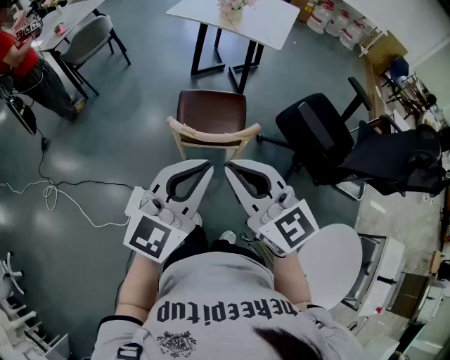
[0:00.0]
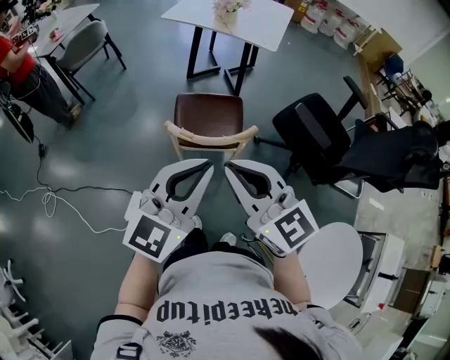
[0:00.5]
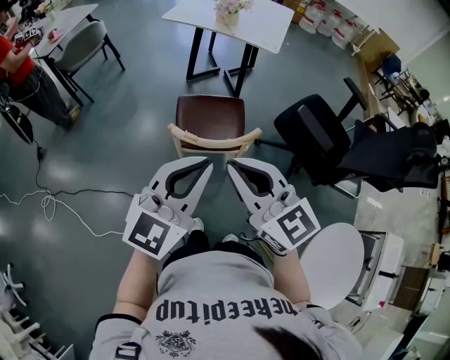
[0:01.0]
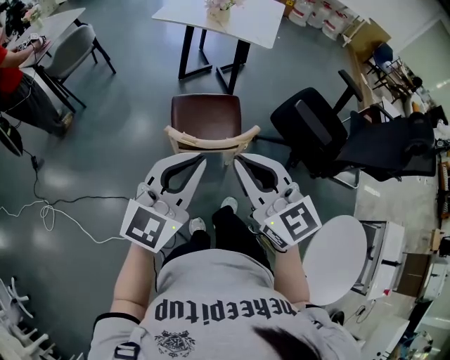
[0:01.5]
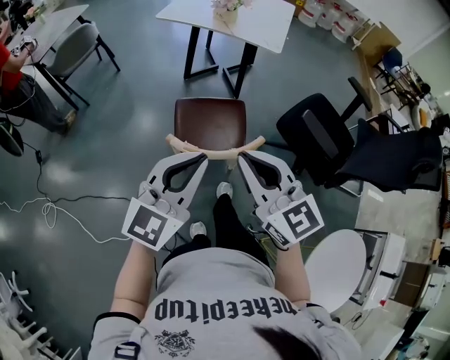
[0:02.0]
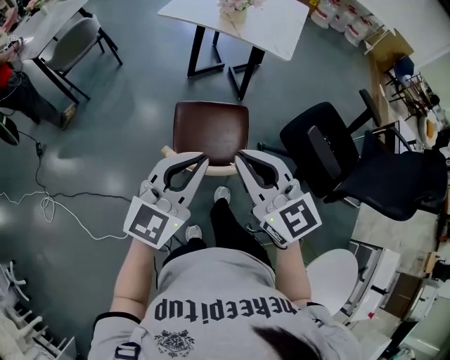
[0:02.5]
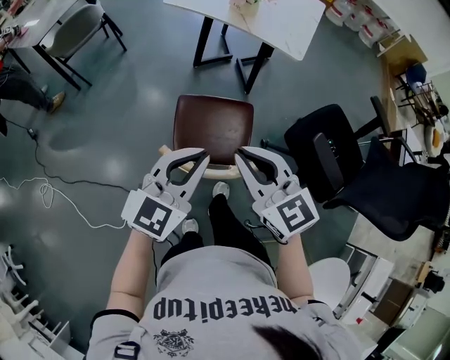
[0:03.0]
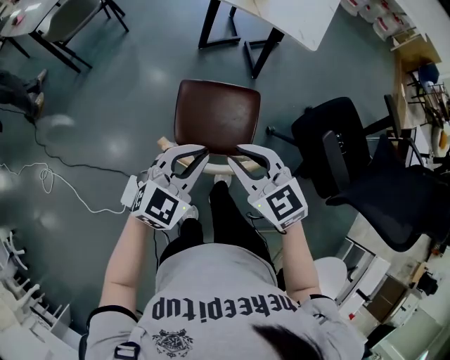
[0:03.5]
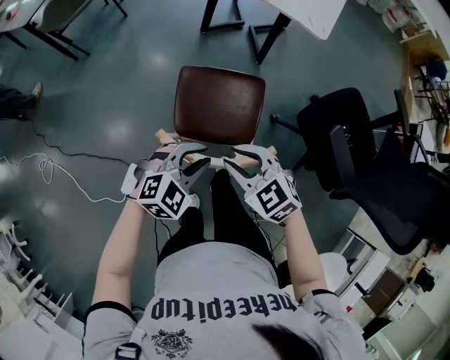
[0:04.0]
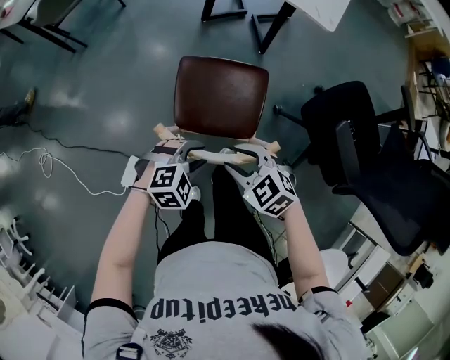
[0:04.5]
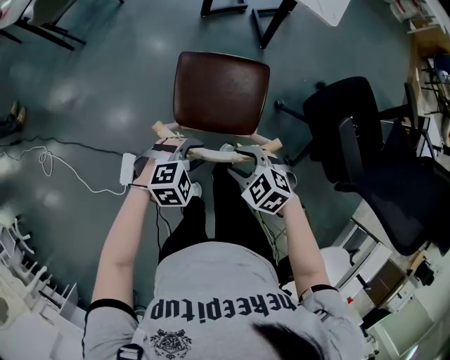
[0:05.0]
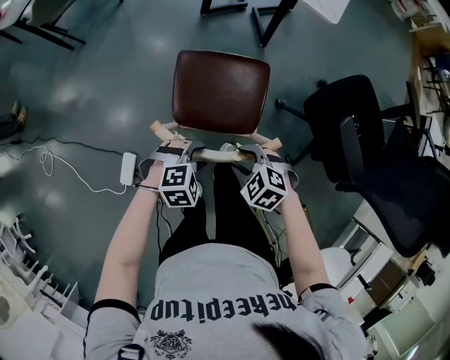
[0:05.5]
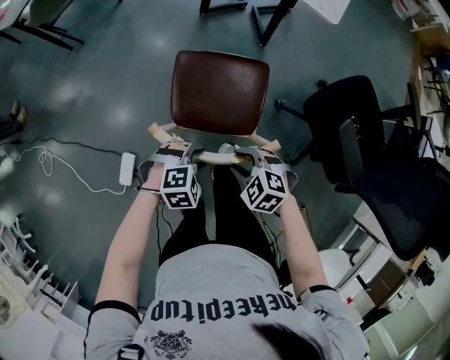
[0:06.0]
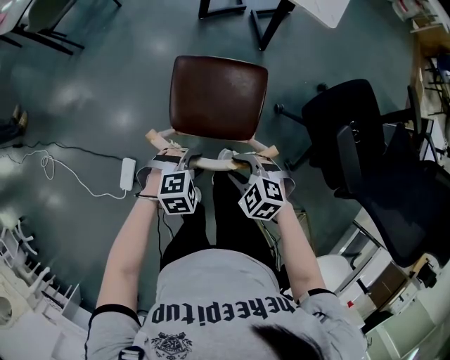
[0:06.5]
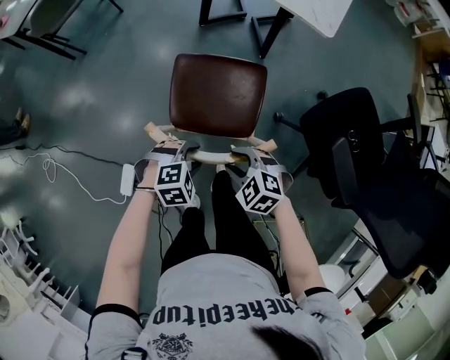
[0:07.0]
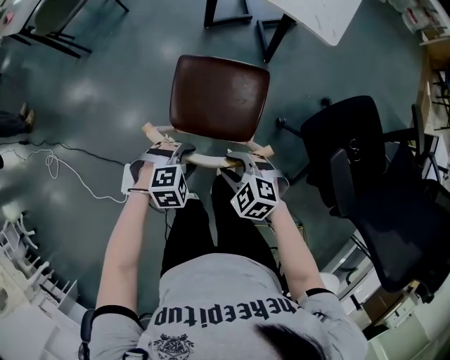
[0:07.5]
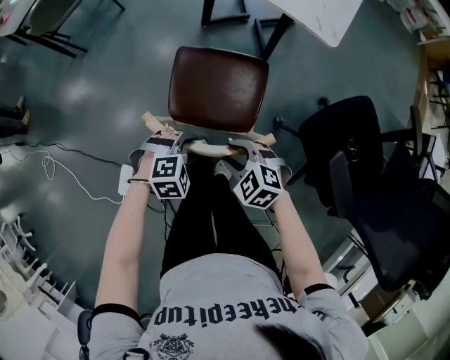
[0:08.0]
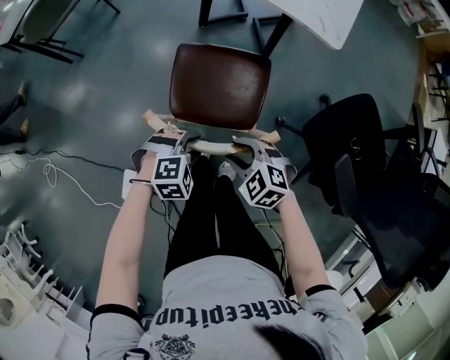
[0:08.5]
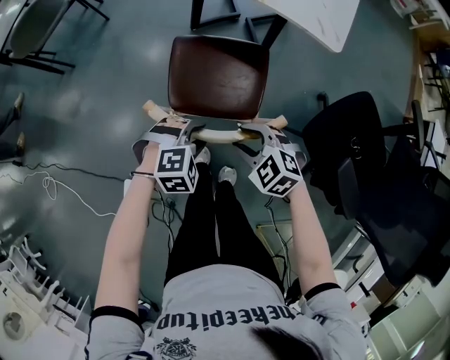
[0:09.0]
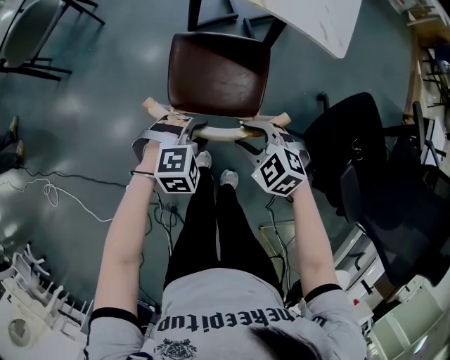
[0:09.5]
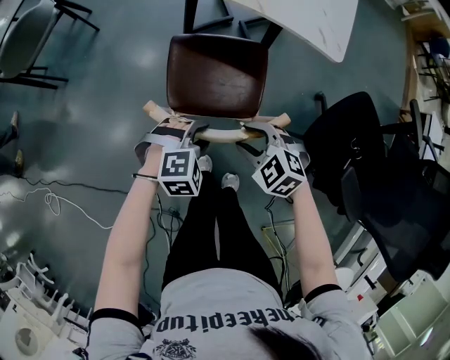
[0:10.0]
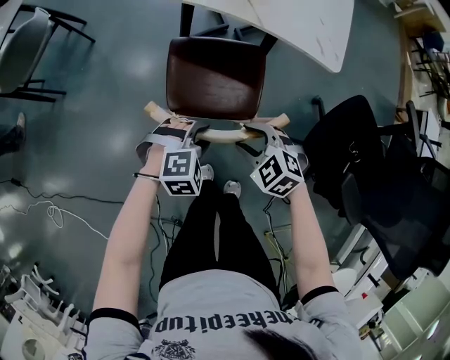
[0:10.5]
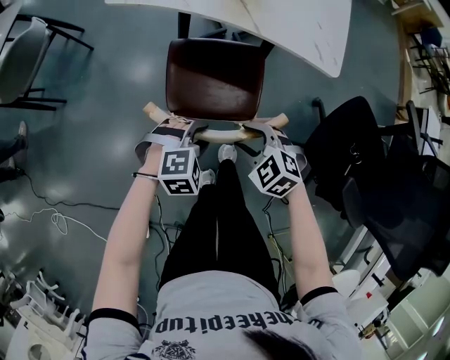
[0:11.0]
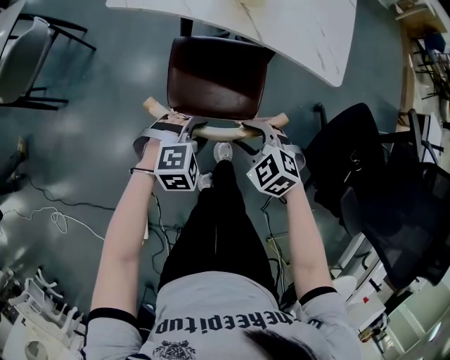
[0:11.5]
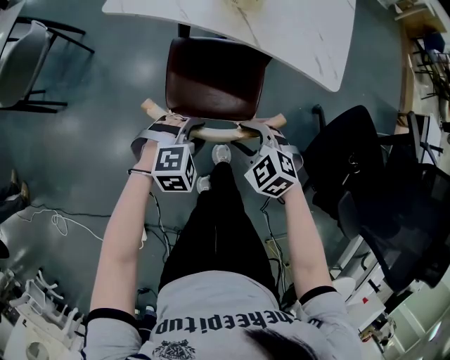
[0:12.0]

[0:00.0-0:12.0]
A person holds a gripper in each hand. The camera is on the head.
0:00.0 to 0:02.0: The grippers both shift forward by approximately 10 cm.
0:02.0 to 0:04.0: The grippers both shift downward and forward by roughly 25 cm. The right gripper angles its fingers downward, by roughly 30 degrees, and opens, while the left gripper angles its fingers downward, by some 40 degrees, and opens.
0:04.0 to 0:06.0: The grippers both shift downward by some 15 cm. The left gripper swivels roughly 30 degrees. The right gripper swivels about 20 degrees.
0:06.0 to 0:08.0: The left gripper changes place by roughly 10 cm. The right gripper moves roughly 10 cm.
0:08.0 to 0:10.0: The grippers both shift forward by some 15 cm.
0:10.0 to 0:12.0: The grippers both shift forward by about 10 cm.

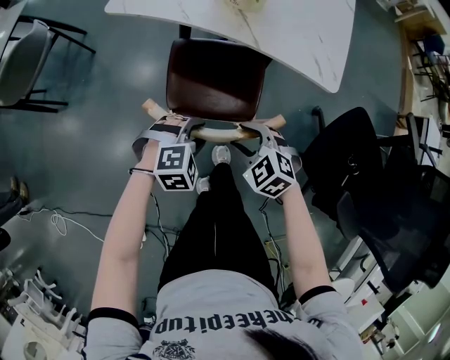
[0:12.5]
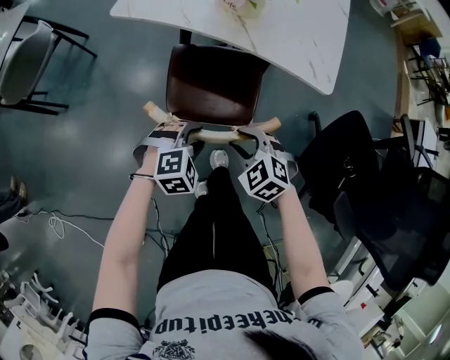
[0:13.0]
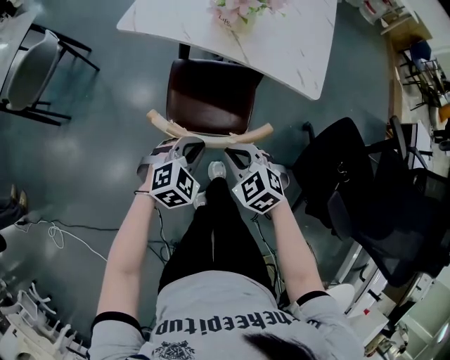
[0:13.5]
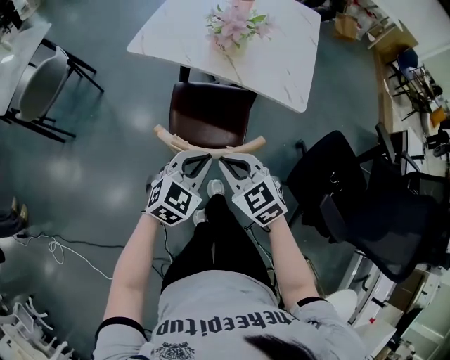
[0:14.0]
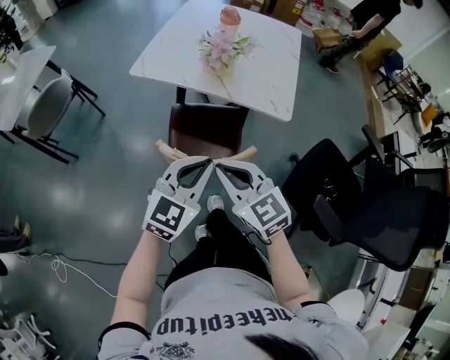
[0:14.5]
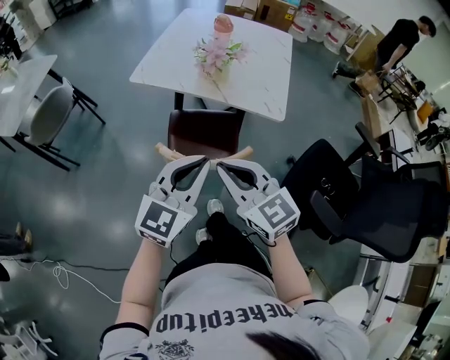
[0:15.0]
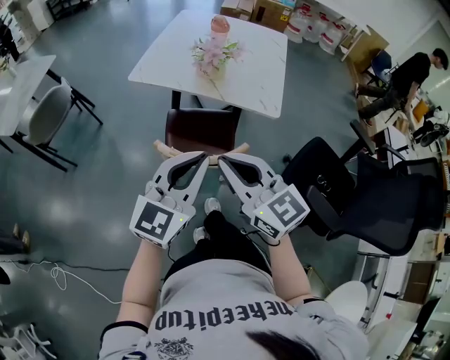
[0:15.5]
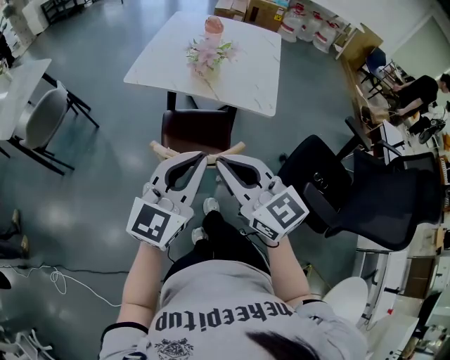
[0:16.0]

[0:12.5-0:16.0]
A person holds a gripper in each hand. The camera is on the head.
0:12.5 to 0:14.5: Both grippers travel together upward, approximately 25 cm. The left gripper points its fingers roughly 50 degrees further upward, and closes; the right gripper tilts its fingers some 30 degrees upward, and closes up.
0:14.5 to 0:16.0: Both grippers travel together upward and backward, about 10 cm.

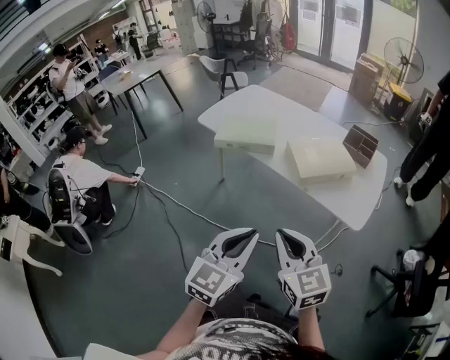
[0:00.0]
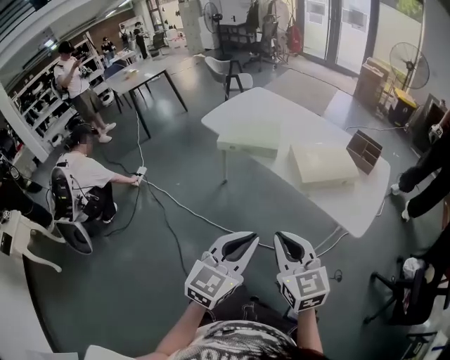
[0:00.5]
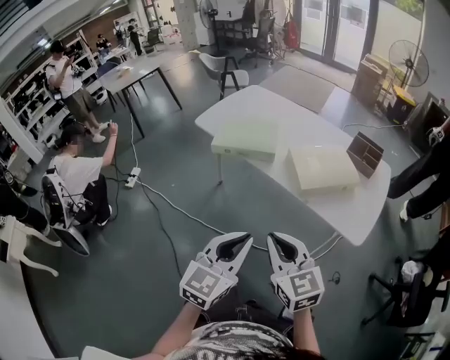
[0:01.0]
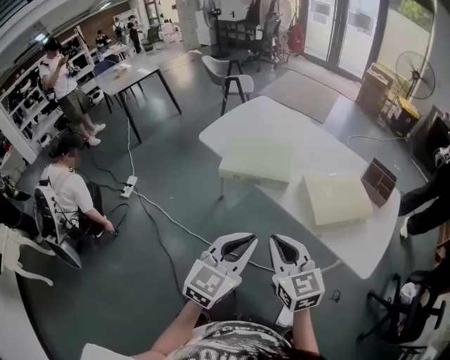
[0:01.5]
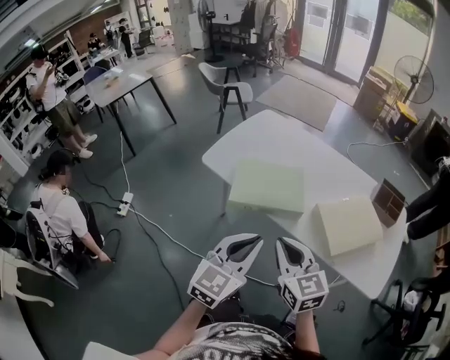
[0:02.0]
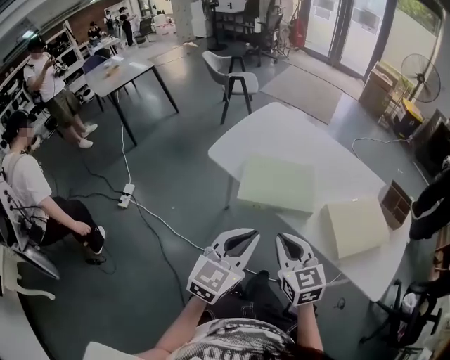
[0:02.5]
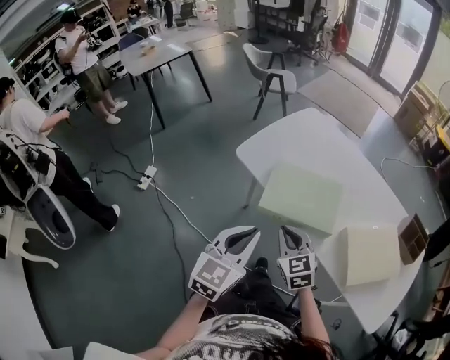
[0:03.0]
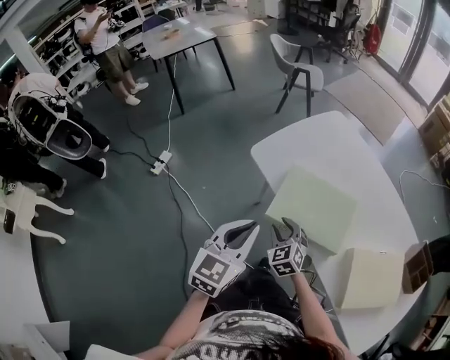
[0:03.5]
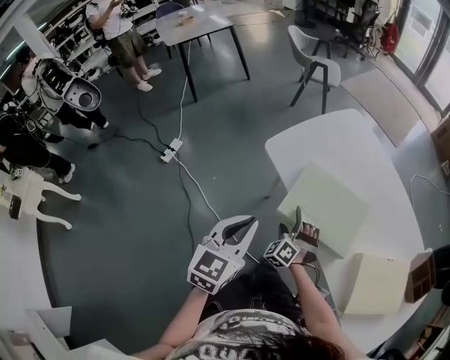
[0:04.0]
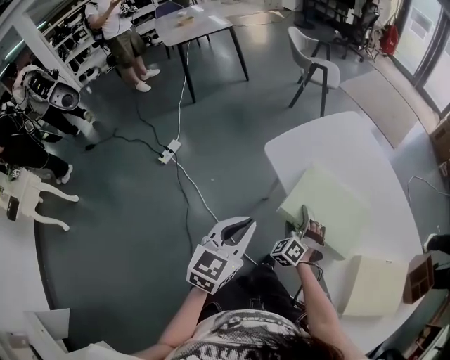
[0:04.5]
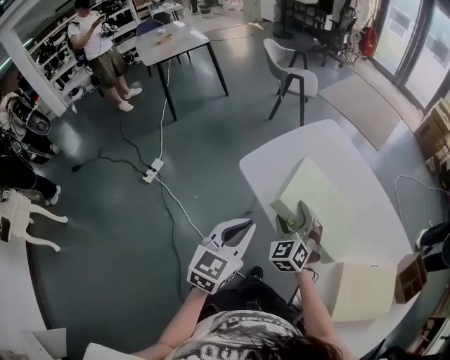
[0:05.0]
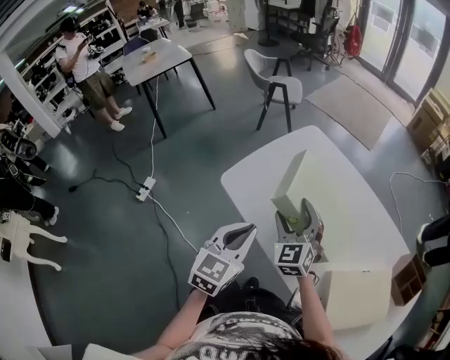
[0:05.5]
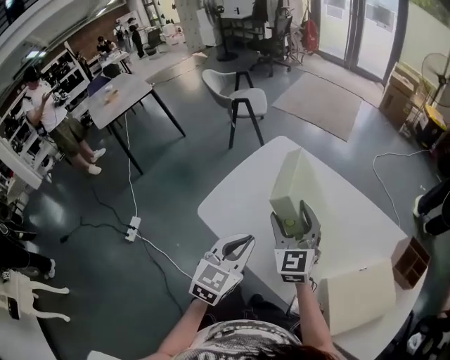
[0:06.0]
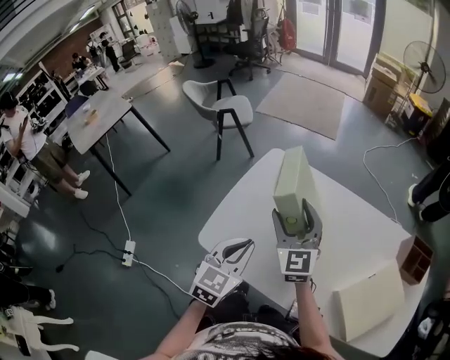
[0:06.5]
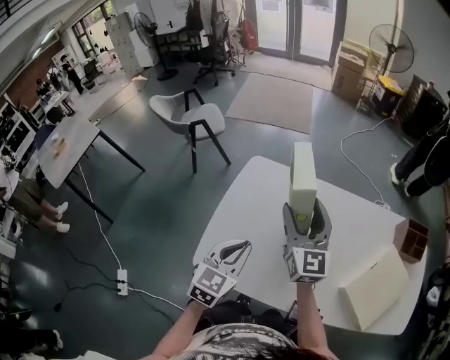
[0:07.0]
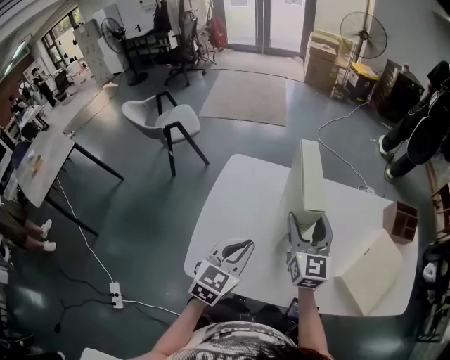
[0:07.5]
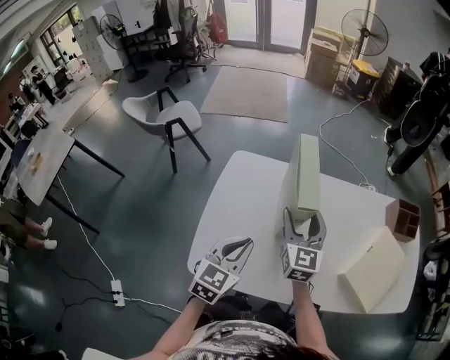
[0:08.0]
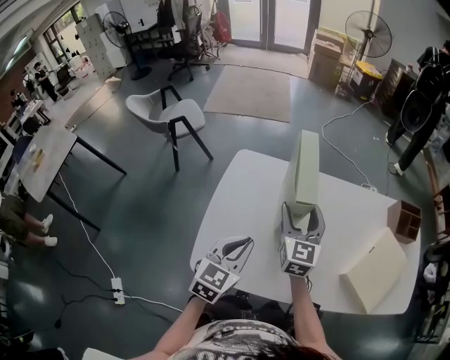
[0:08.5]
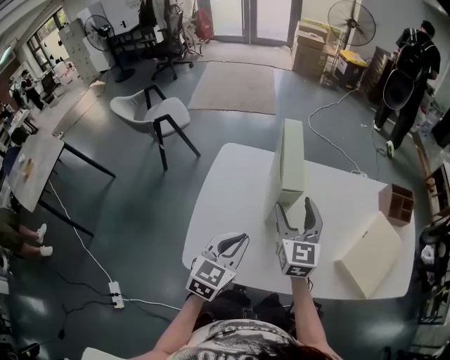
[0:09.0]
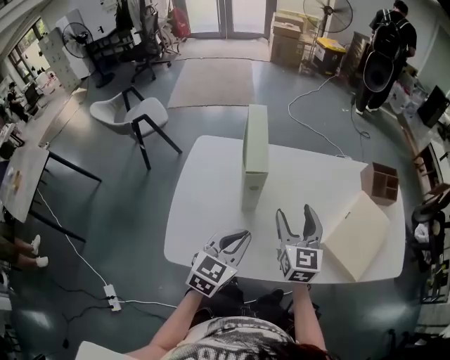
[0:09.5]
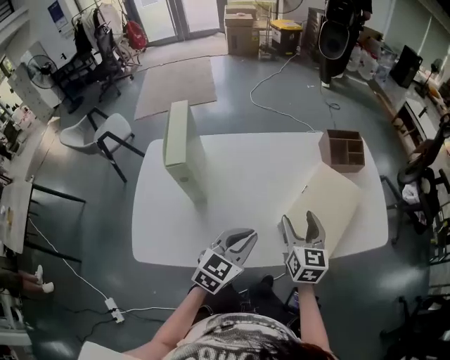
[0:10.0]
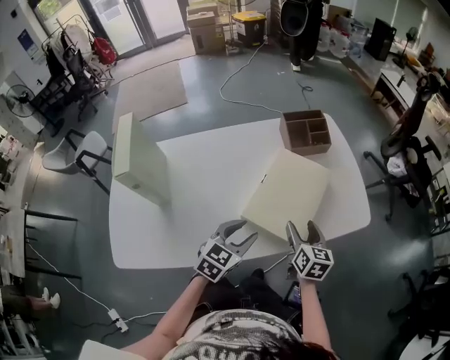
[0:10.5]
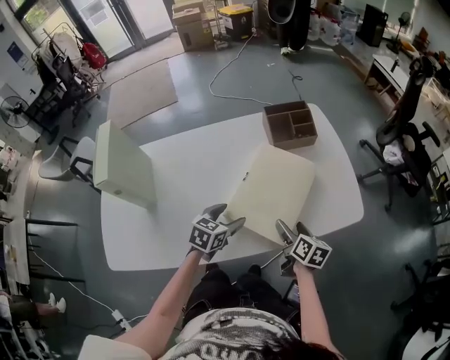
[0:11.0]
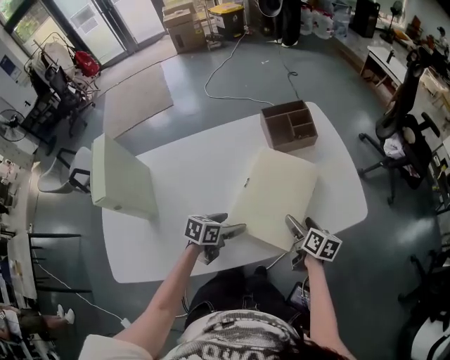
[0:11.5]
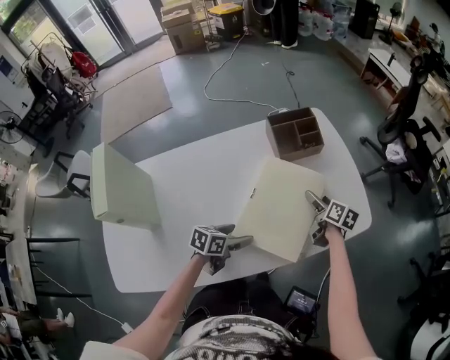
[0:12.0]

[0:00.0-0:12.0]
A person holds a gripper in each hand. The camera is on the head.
0:00.0 to 0:02.0: The grippers both shift forward and to the left by approximately 35 cm.
0:02.0 to 0:04.0: The right gripper travels downward and forward by approximately 35 cm, rotates around the line of its fingers by about 60 degrees, counterclockwise from behind, and opens its fingers. The left gripper heads to the left, forward and downward, covering some 20 cm, and turns by approximately 30 degrees.
0:04.0 to 0:06.0: The right gripper is displaced upward, forward and to the right by approximately 35 cm, and twists approximately 50 degrees clockwise, seen from behind, while the left gripper moves forward and to the right, approximately 25 cm, and turns by roughly 20 degrees.
0:06.0 to 0:08.0: The right gripper moves some 10 cm, and changes its angle by some 40 degrees. Meanwhile the left gripper shifts by some 15 cm, and changes its angle by approximately 30 degrees.
0:08.0 to 0:10.0: Both grippers move to the right, roughly 30 cm. The left gripper turns by approximately 20 degrees; the right gripper changes its angle by about 20 degrees.
0:10.0 to 0:12.0: The left gripper goes about 25 cm downward, forward and to the right, turns by approximately 40 degrees, and opens its fingers. Meanwhile the right gripper moves to the right, forward and downward, roughly 35 cm, and rolls clockwise, seen from behind, by about 40 degrees.
